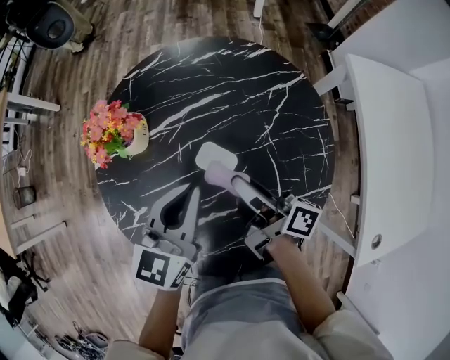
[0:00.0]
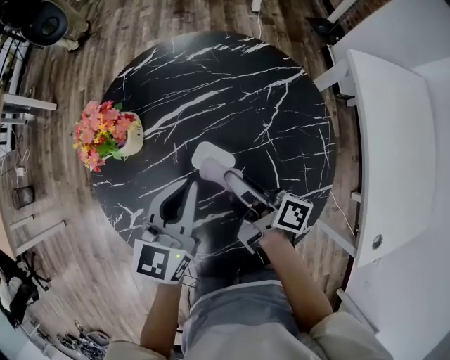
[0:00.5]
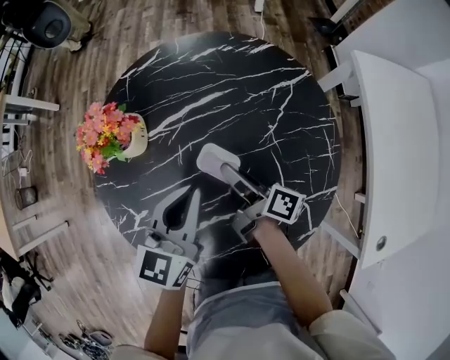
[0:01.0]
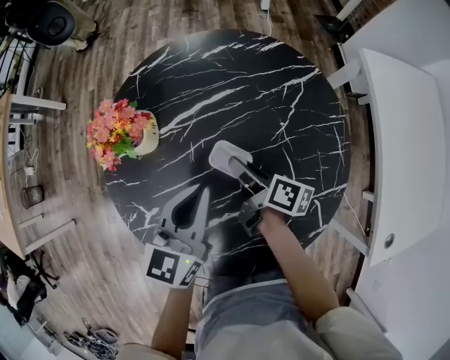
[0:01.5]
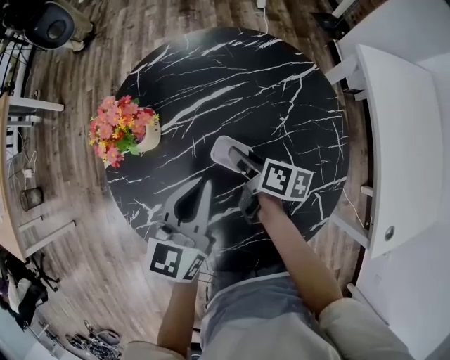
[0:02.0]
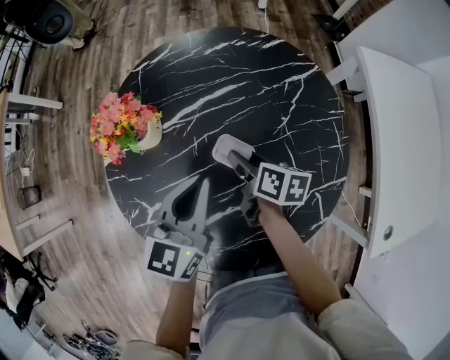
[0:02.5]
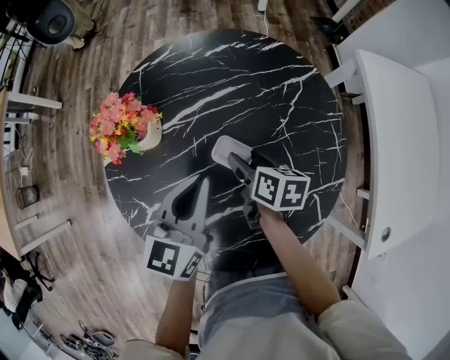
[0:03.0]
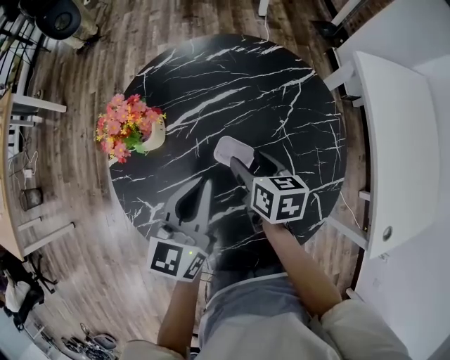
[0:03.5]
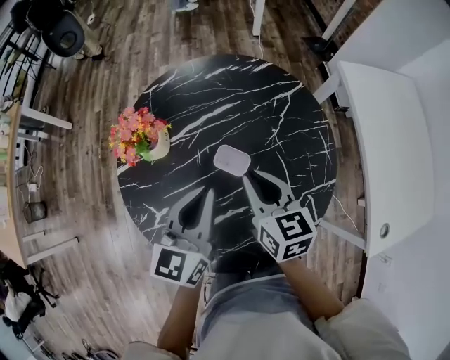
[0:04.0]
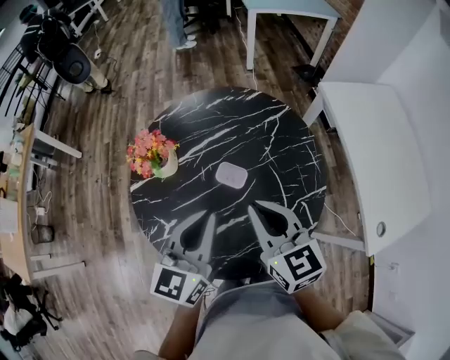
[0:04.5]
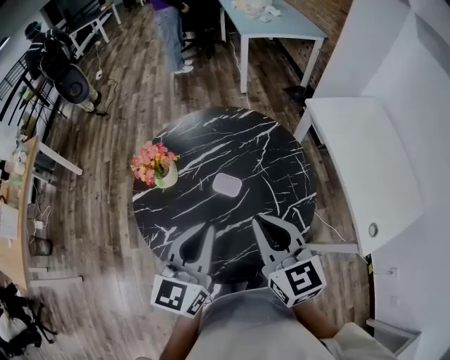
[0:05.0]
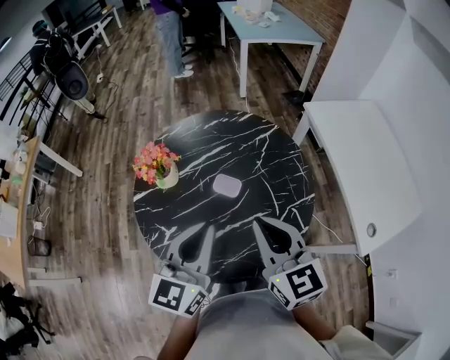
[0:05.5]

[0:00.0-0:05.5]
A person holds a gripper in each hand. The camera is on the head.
0:00.0 to 0:02.0: The right gripper travels downward by some 10 cm, and tilts its fingers about 30 degrees downward.
0:02.0 to 0:03.5: The right gripper rotates approximately 30 degrees, and opens.
0:03.5 to 0:05.5: The right gripper moves upward and backward, some 35 cm, changes its angle by approximately 40 degrees, and closes up. The left gripper heads upward and backward, covering approximately 20 cm.

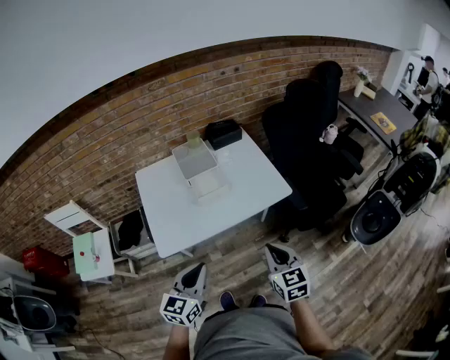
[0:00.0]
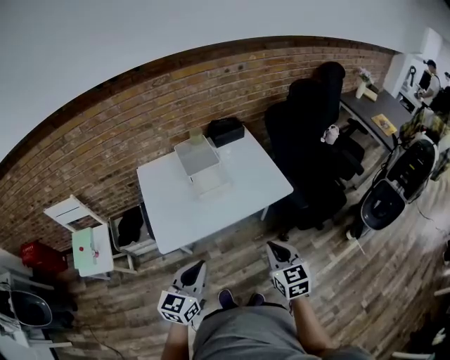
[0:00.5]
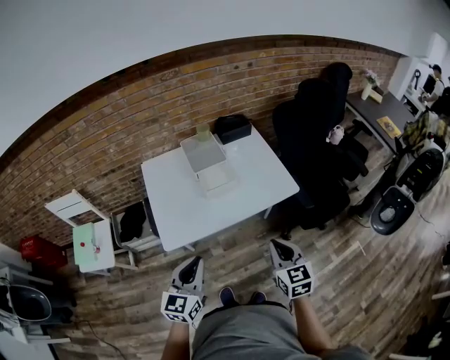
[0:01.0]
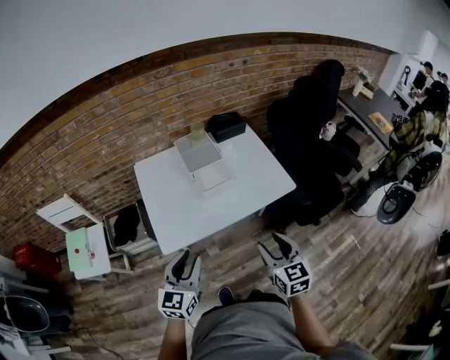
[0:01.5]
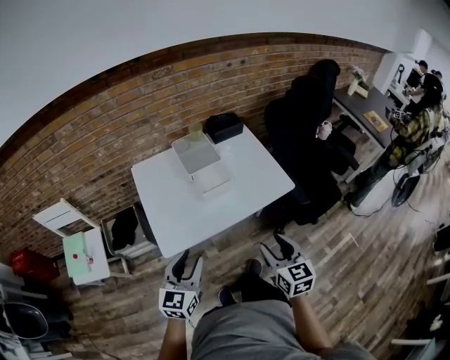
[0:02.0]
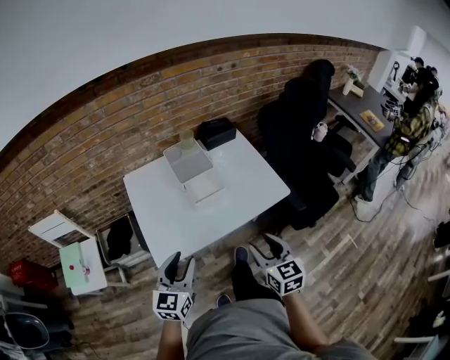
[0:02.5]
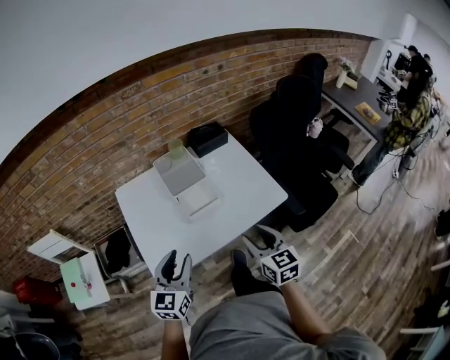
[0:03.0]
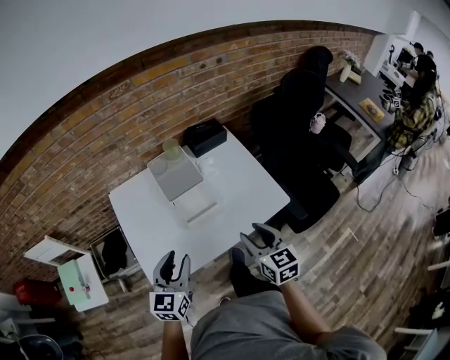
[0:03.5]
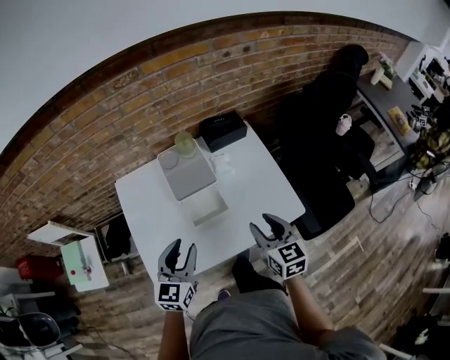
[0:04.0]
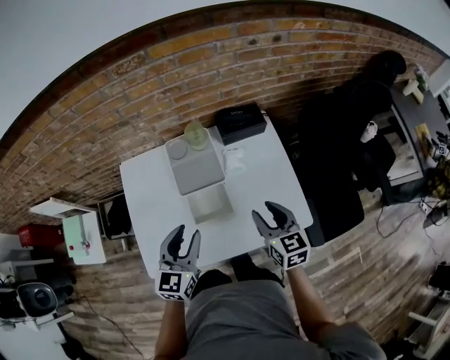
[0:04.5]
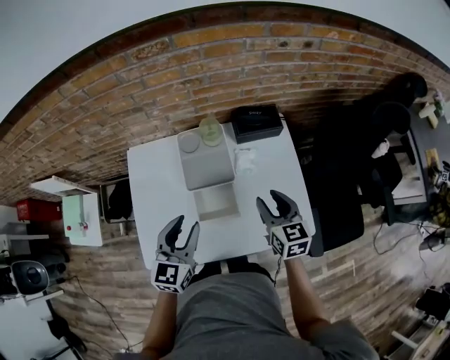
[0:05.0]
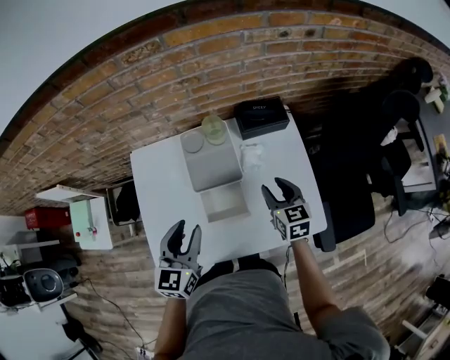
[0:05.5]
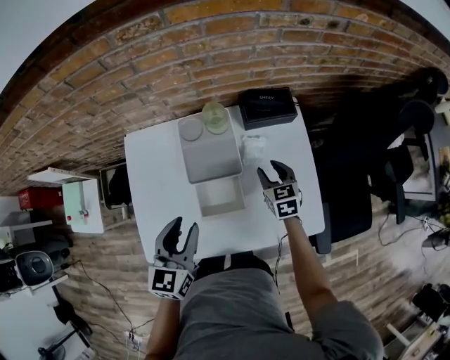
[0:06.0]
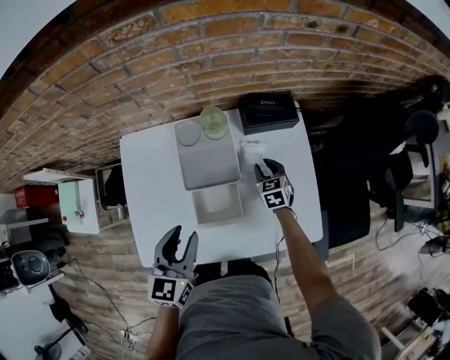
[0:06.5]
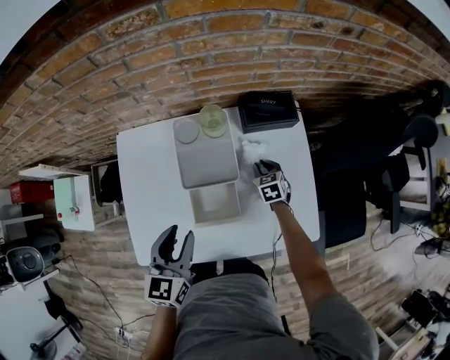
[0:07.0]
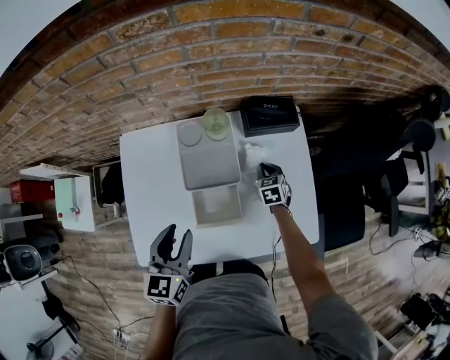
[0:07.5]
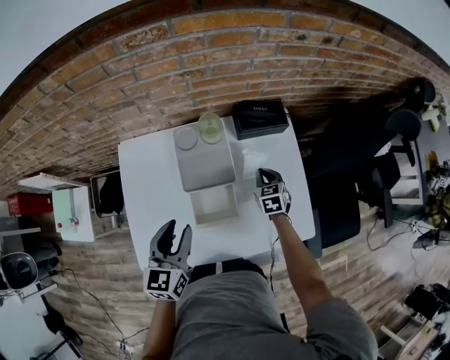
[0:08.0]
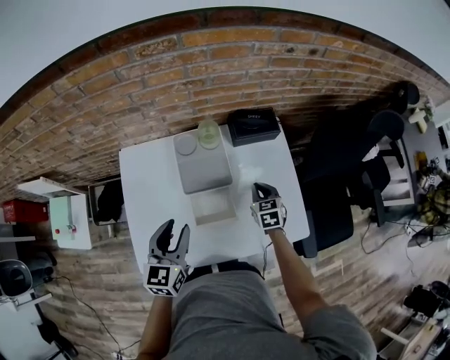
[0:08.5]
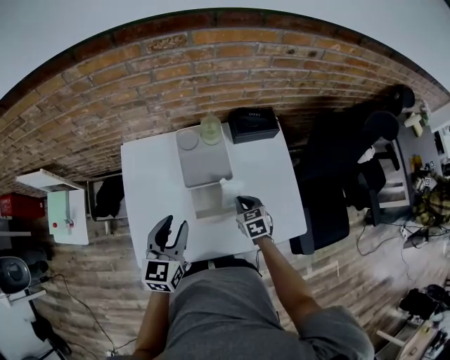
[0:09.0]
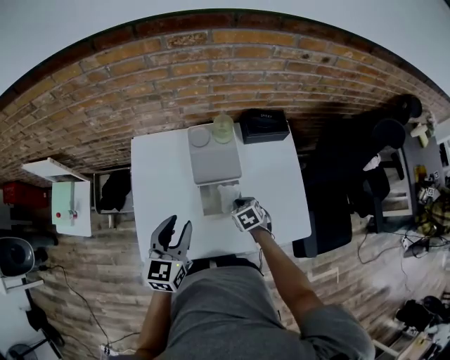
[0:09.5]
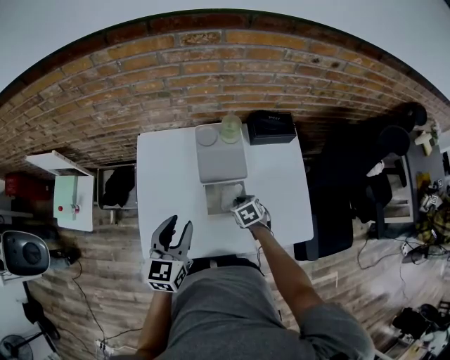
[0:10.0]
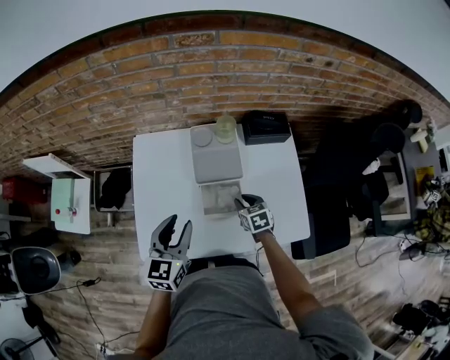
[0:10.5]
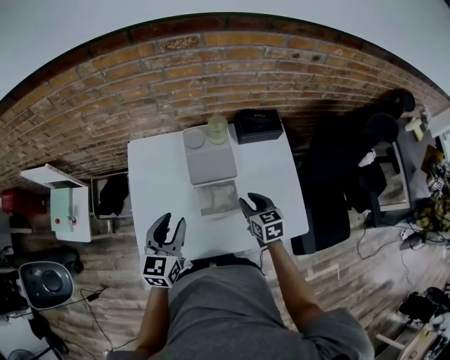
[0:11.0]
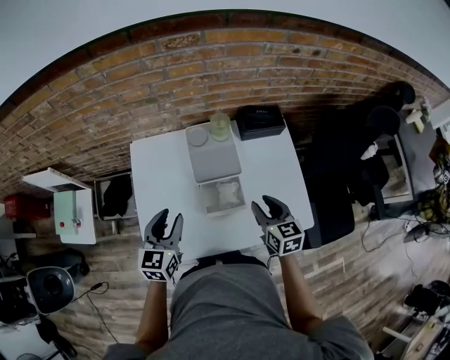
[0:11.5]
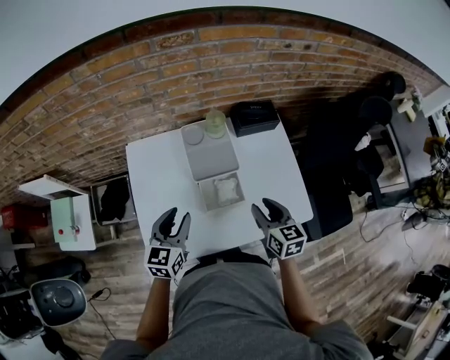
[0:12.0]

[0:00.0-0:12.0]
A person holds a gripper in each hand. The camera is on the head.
0:00.0 to 0:02.0: The left gripper travels to the left by approximately 10 cm, and opens up. Meanwhile the right gripper travels to the left by approximately 5 cm, and opens up.
0:02.0 to 0:04.0: The two grippers go about 25 cm forward.
0:04.0 to 0:06.0: The right gripper moves forward and downward, roughly 30 cm, and rotates some 20 degrees. Meanwhile the left gripper heads forward, covering roughly 10 cm.
0:06.0 to 0:08.0: The right gripper closes up.
0:08.0 to 0:10.0: The left gripper is displaced to the left by roughly 5 cm; the right gripper moves to the left and backward, roughly 20 cm, and changes its angle by about 20 degrees.
0:10.0 to 0:12.0: The right gripper goes about 20 cm upward, tilts its fingers approximately 30 degrees upward, and opens its fingers.

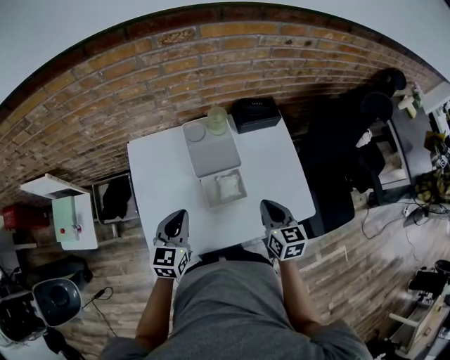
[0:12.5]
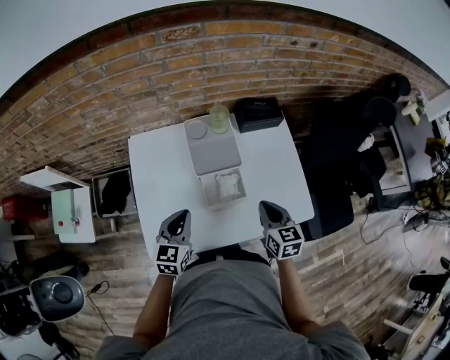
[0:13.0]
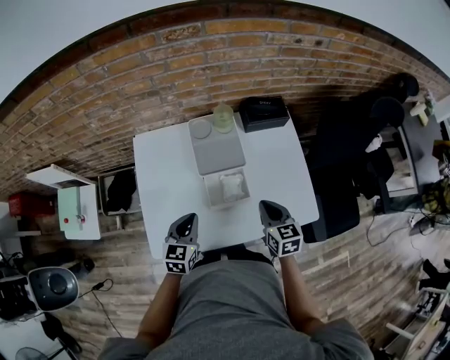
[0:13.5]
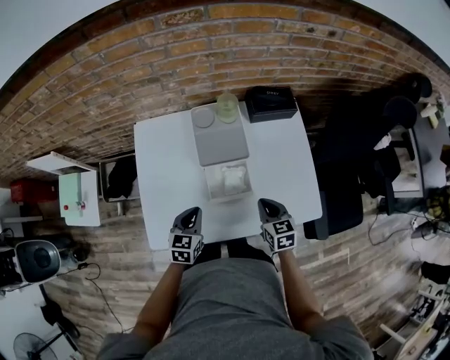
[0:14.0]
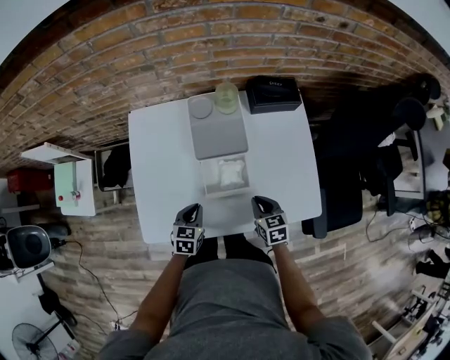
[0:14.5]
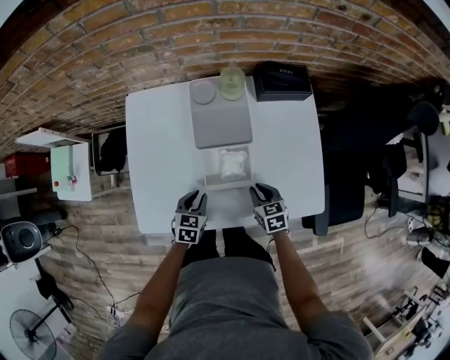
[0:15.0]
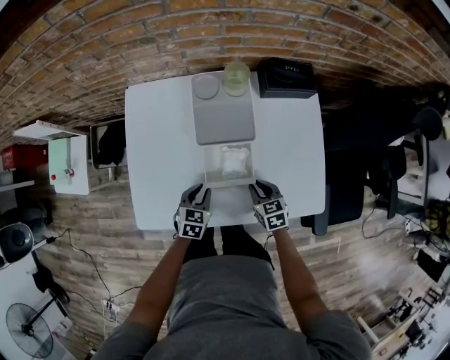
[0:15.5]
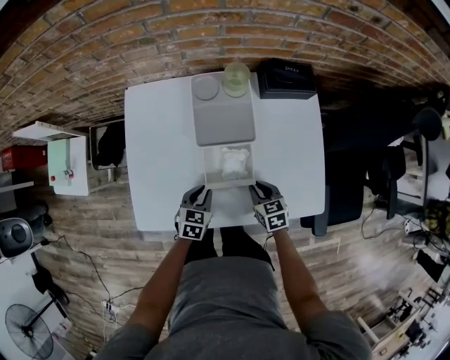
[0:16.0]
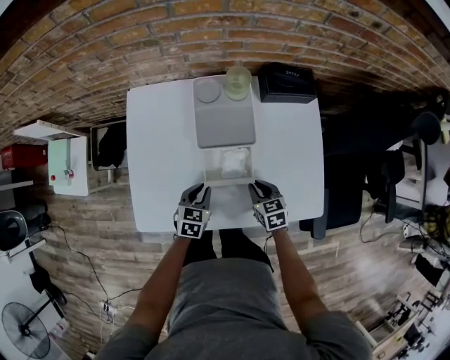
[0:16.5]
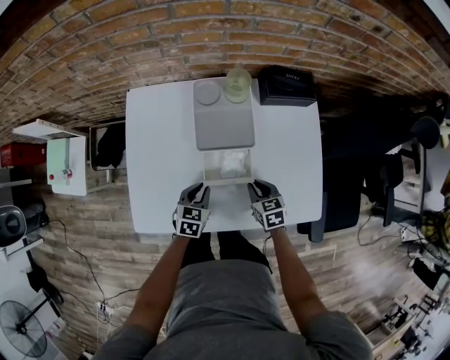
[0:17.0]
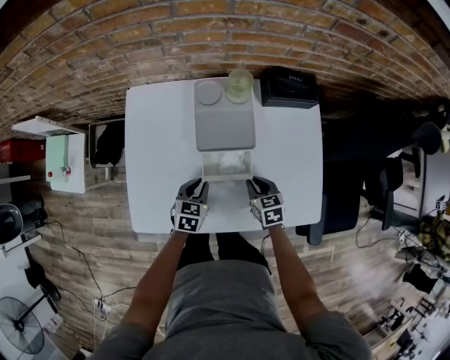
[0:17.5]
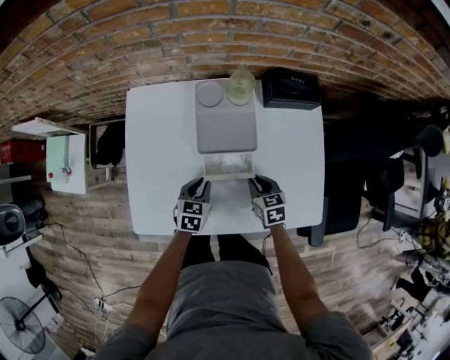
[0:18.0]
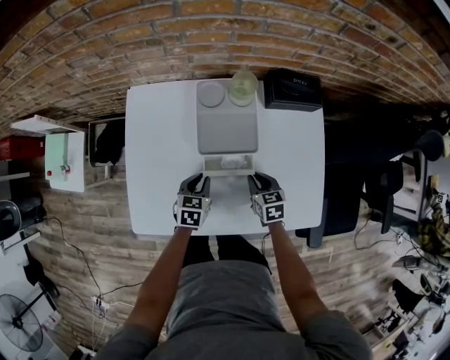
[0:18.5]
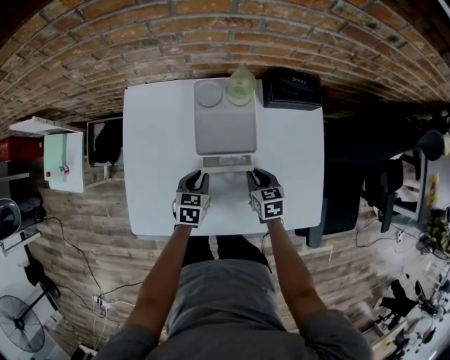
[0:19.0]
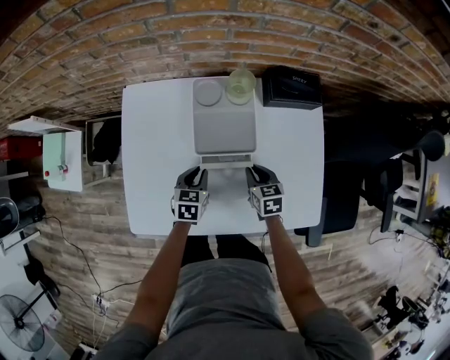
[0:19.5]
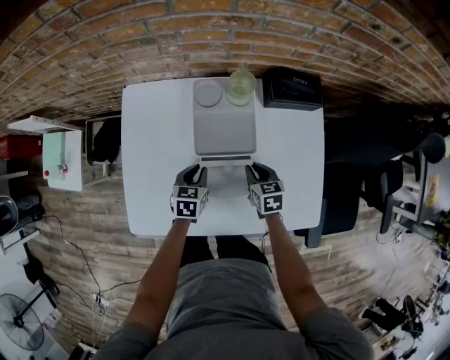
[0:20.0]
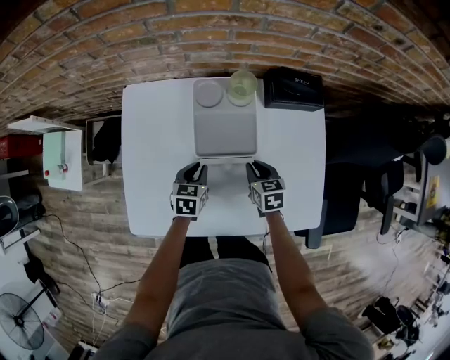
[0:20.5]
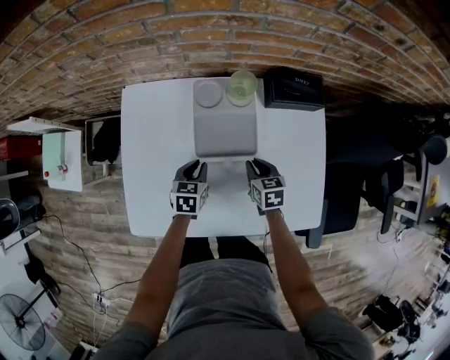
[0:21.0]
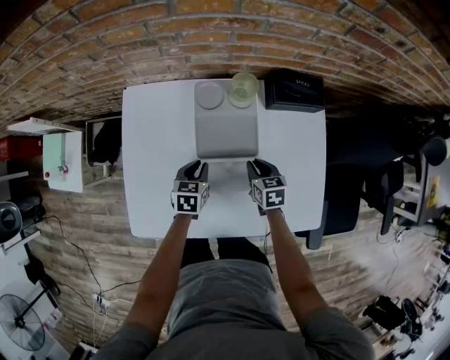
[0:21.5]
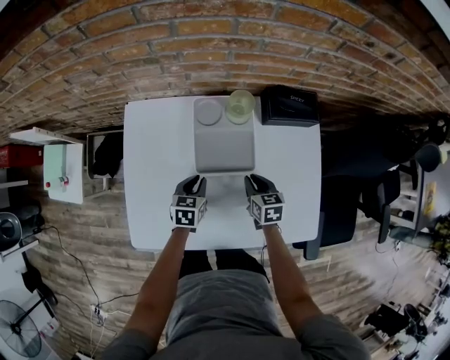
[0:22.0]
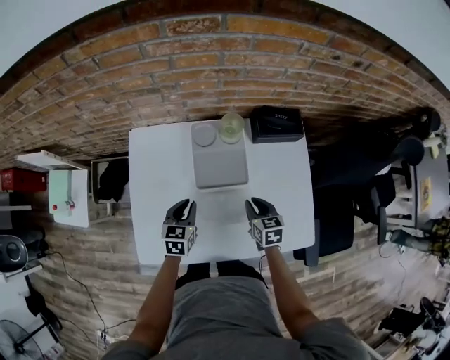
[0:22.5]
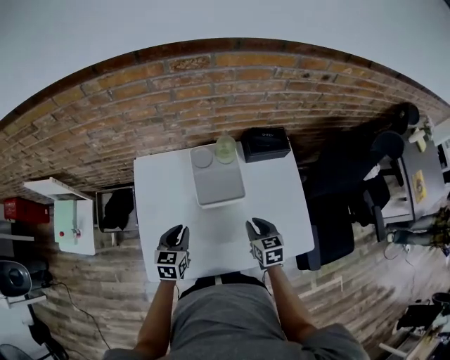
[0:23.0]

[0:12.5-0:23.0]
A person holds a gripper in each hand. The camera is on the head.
0:12.5 to 0:14.5: The two grippers go about 20 cm downward. The right gripper turns by some 20 degrees. The left gripper changes its angle by about 20 degrees.
0:14.5 to 0:16.5: The grippers stay close to where they were, moving slightly.
0:16.5 to 0:19.0: The two grippers go approximately 5 cm forward.
0:19.0 to 0:21.0: The grippers stay close to where they were, moving slightly.
0:21.0 to 0:23.0: The right gripper moves upward and backward, some 15 cm. The left gripper goes some 15 cm upward, to the left and backward.
